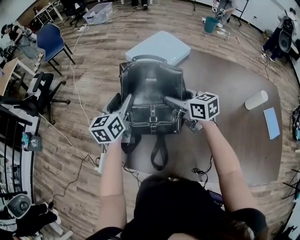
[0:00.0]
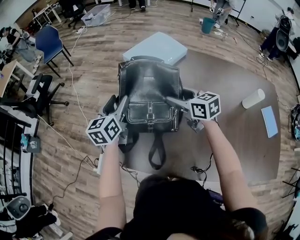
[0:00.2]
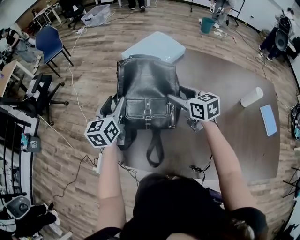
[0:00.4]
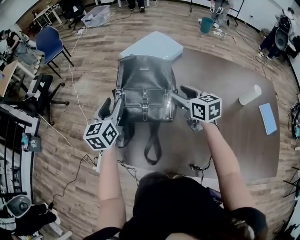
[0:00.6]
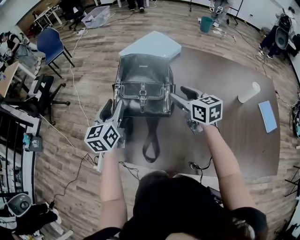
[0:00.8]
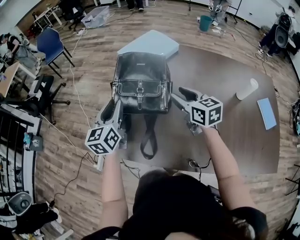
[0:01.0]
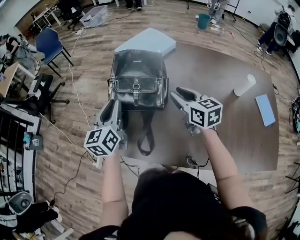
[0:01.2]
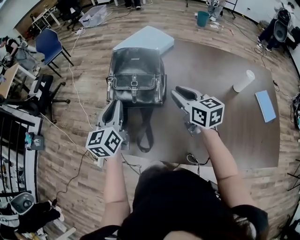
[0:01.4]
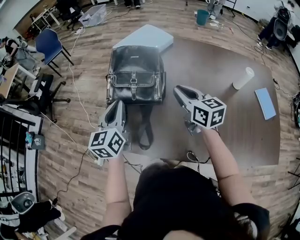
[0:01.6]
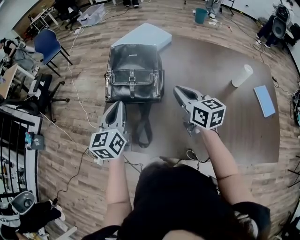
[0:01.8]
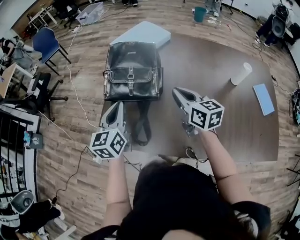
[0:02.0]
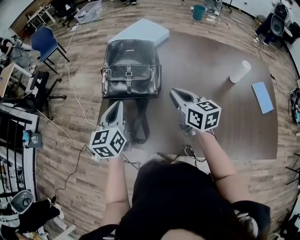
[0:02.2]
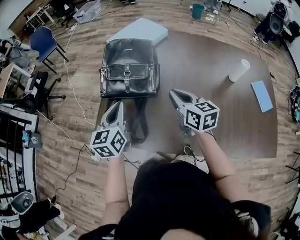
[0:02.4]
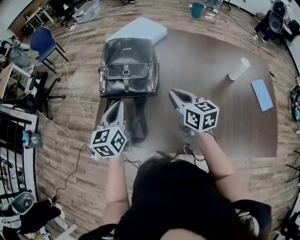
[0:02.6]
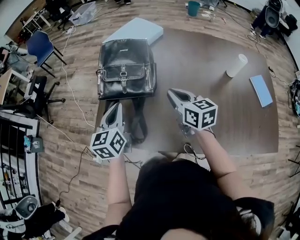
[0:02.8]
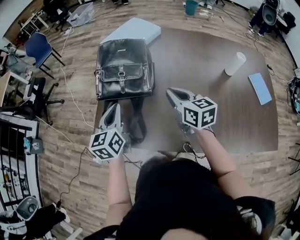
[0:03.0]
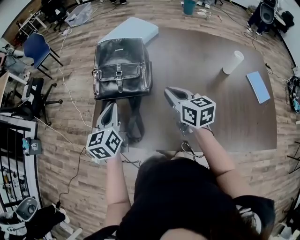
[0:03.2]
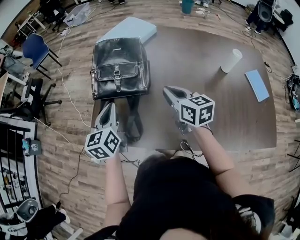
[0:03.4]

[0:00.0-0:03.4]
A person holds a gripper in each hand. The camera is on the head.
0:00.0 to 0:01.6: The left gripper heads backward, covering roughly 15 cm, and closes up. Meanwhile the right gripper is displaced backward, to the right and upward by some 15 cm, and closes up.
0:01.6 to 0:03.4: The left gripper shifts by roughly 5 cm. Meanwhile the right gripper changes place by some 5 cm.

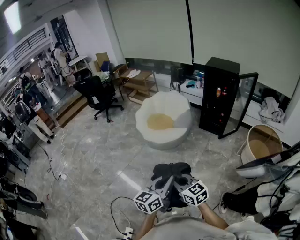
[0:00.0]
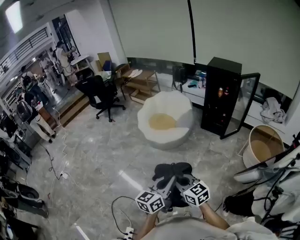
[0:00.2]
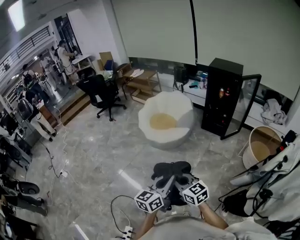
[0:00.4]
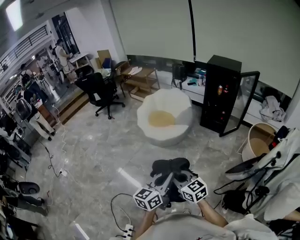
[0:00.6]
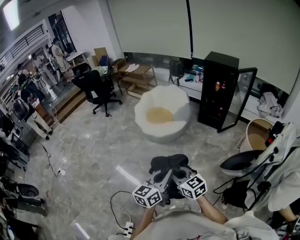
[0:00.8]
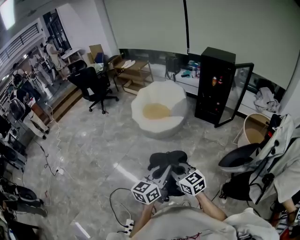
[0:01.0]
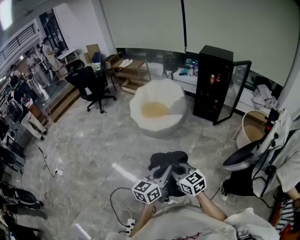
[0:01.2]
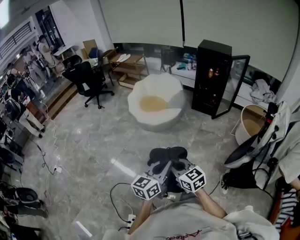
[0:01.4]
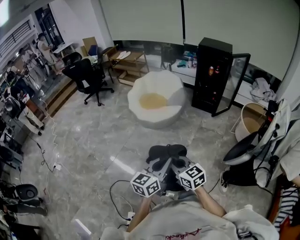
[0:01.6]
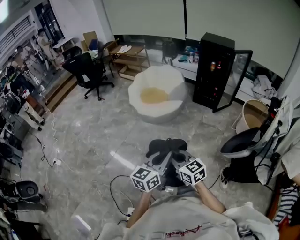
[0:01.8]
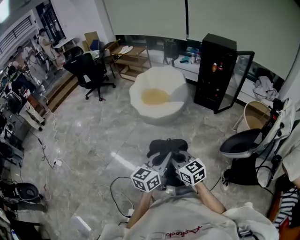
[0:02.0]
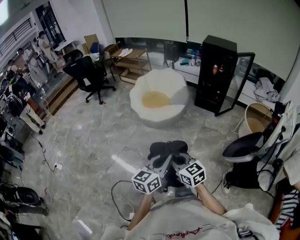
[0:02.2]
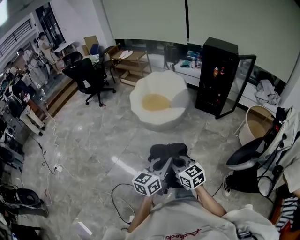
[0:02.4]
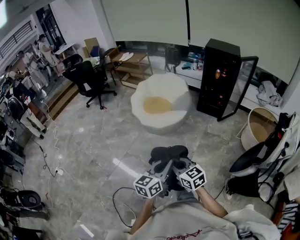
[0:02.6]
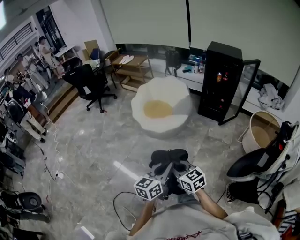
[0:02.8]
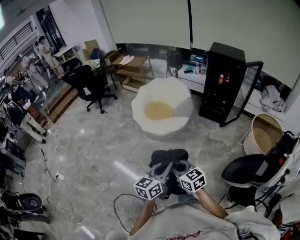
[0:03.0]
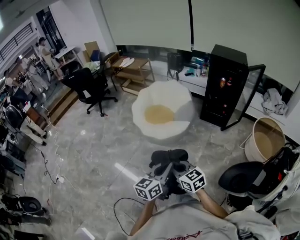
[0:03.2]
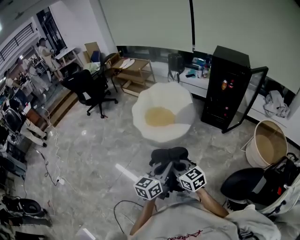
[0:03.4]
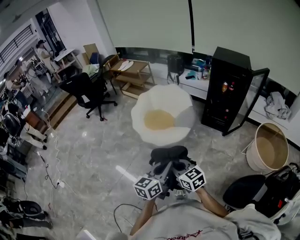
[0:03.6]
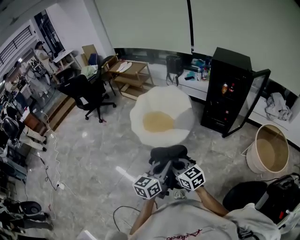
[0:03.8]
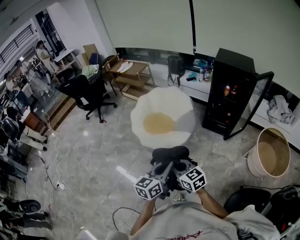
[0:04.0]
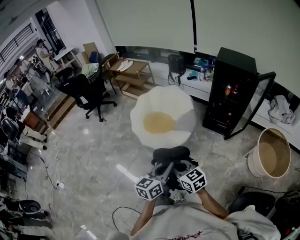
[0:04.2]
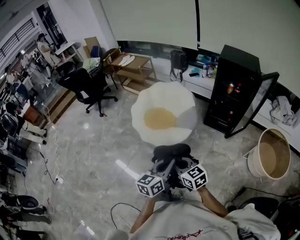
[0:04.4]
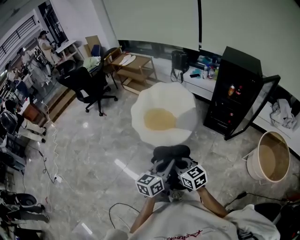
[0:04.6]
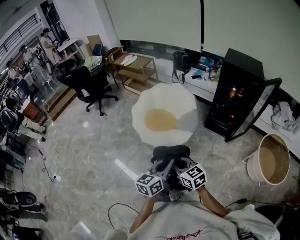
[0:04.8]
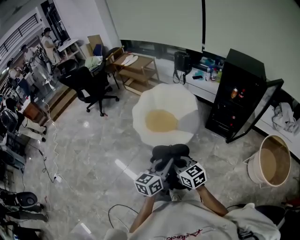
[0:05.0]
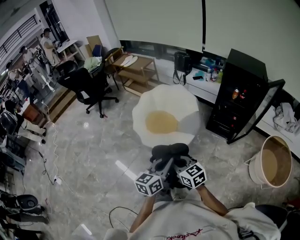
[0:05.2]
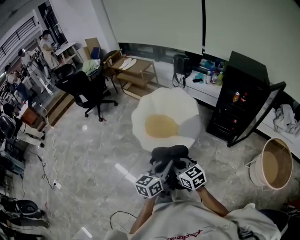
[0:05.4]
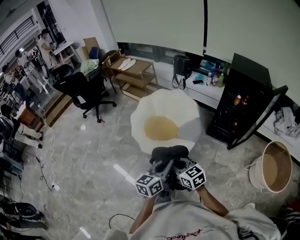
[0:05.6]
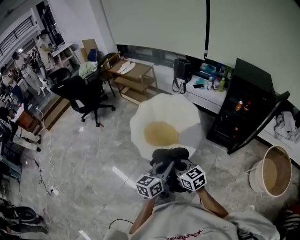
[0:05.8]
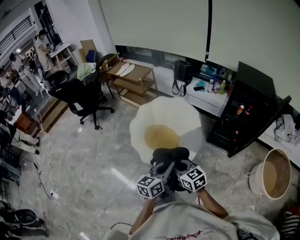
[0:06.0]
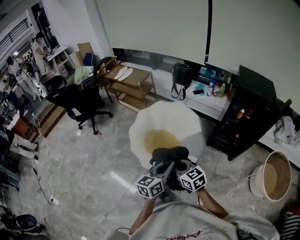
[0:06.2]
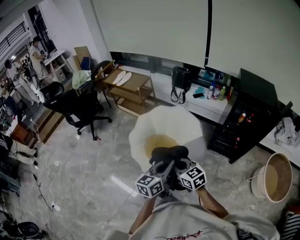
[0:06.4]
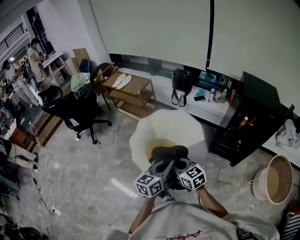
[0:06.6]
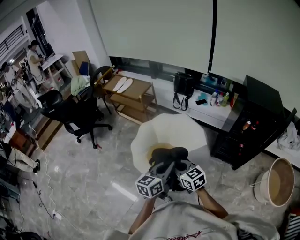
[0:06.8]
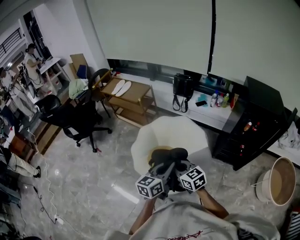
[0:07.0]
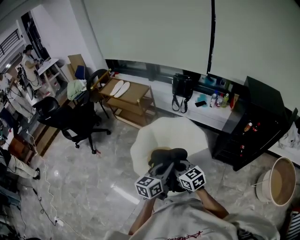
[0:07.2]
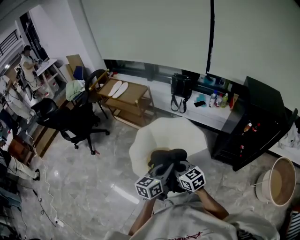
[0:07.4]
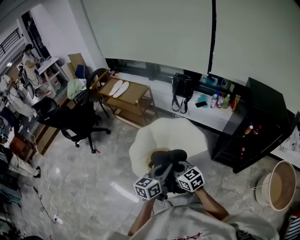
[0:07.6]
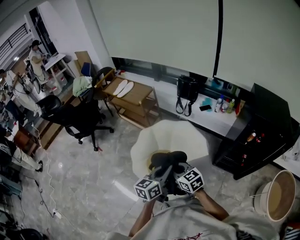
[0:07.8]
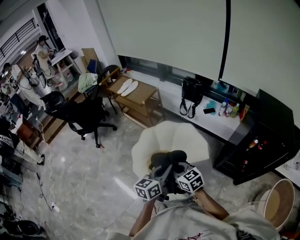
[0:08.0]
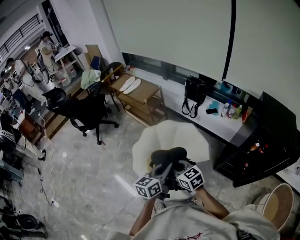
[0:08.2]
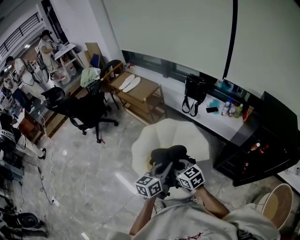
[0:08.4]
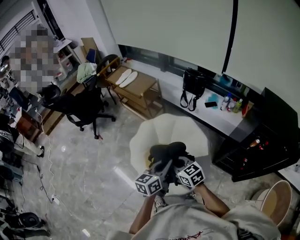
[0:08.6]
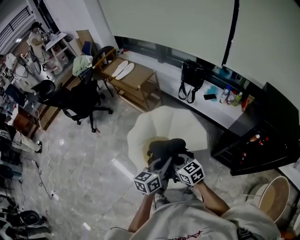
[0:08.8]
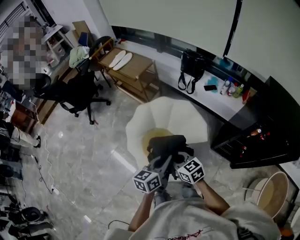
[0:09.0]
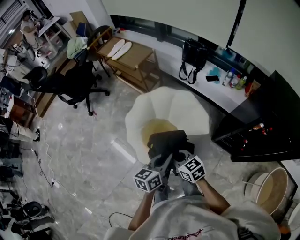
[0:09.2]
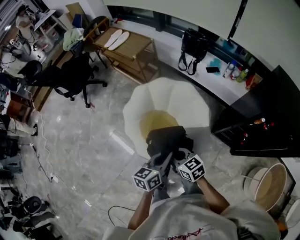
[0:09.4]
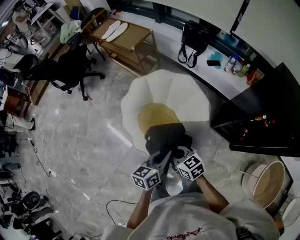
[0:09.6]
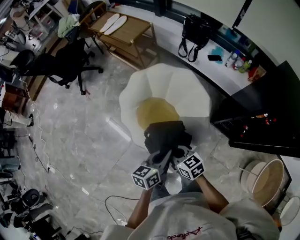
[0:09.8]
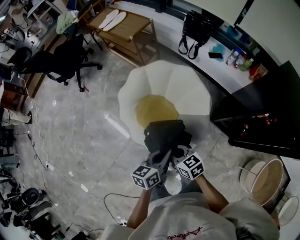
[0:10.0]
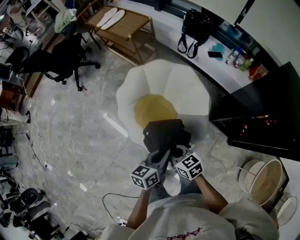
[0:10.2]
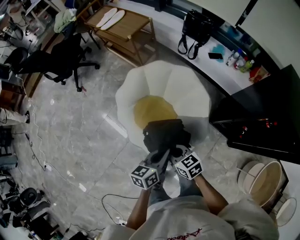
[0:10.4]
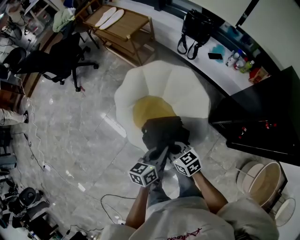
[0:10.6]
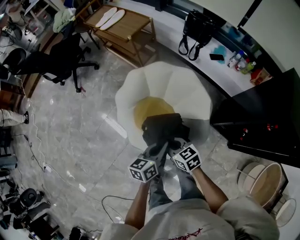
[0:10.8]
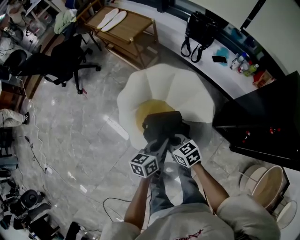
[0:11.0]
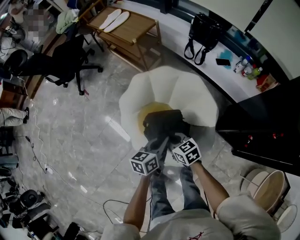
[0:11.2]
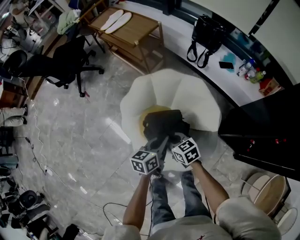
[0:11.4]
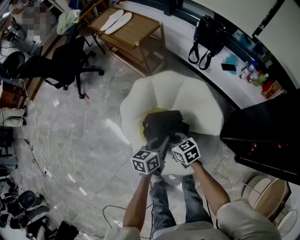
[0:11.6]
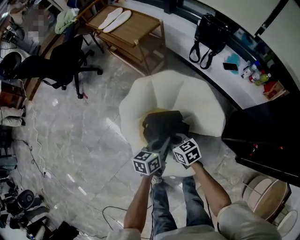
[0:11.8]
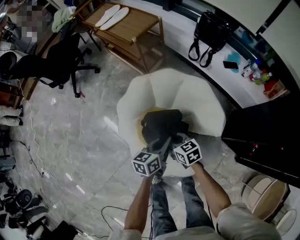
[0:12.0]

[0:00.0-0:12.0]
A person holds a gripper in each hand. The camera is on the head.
0:00.0 to 0:01.6: Both grippers move to the left, approximately 5 cm.
0:01.6 to 0:03.0: The grippers both shift forward by about 15 cm.
0:03.0 to 0:04.4: Both grippers travel together forward, approximately 20 cm.
0:04.4 to 0:06.0: Both grippers move forward, some 25 cm.
0:06.0 to 0:07.6: The grippers both shift forward by some 25 cm.
0:07.6 to 0:09.0: Both grippers move to the right and forward, approximately 10 cm.
0:09.0 to 0:10.4: The two grippers go about 10 cm downward.
0:10.4 to 0:12.0: Both grippers travel together forward and downward, approximately 25 cm.

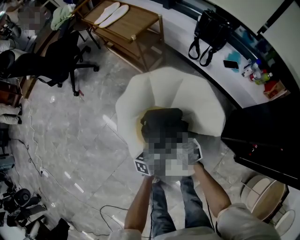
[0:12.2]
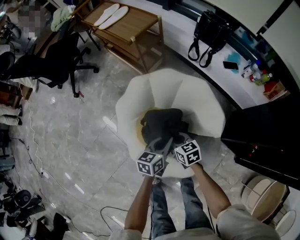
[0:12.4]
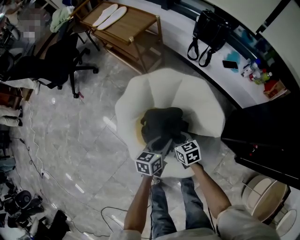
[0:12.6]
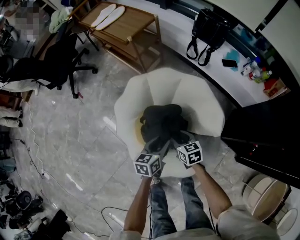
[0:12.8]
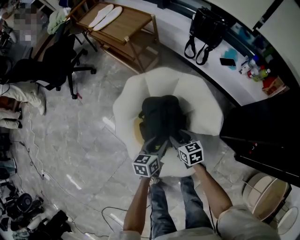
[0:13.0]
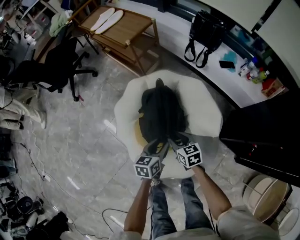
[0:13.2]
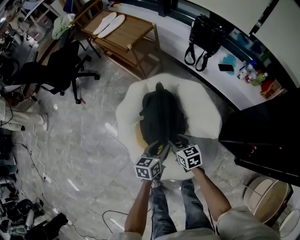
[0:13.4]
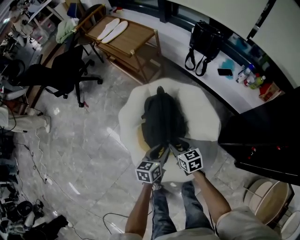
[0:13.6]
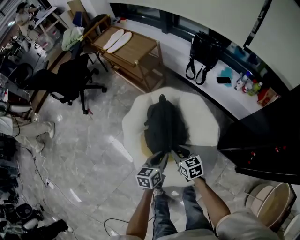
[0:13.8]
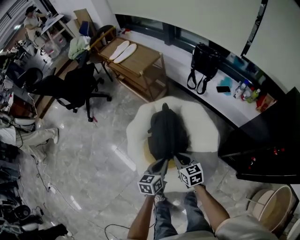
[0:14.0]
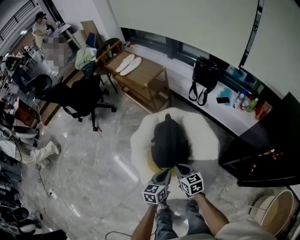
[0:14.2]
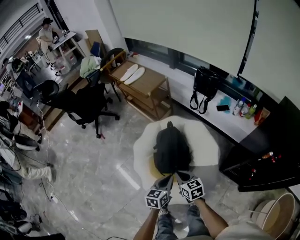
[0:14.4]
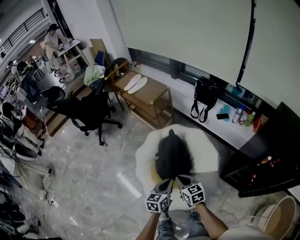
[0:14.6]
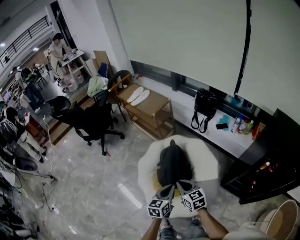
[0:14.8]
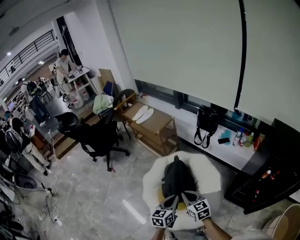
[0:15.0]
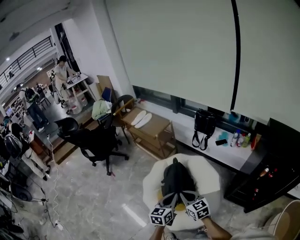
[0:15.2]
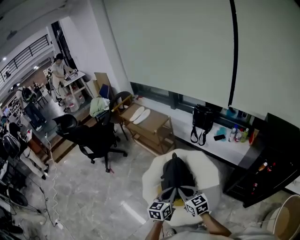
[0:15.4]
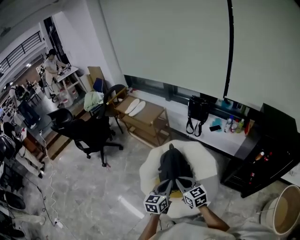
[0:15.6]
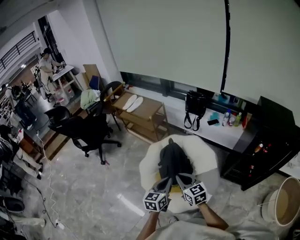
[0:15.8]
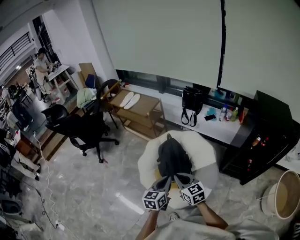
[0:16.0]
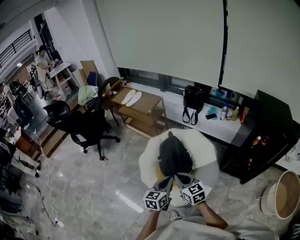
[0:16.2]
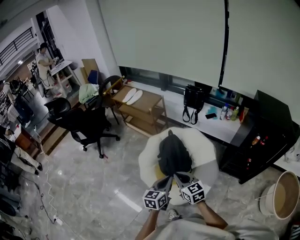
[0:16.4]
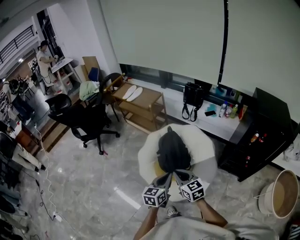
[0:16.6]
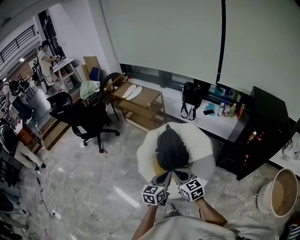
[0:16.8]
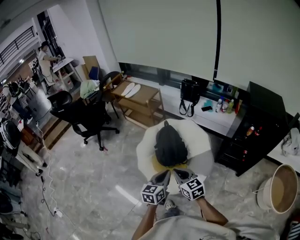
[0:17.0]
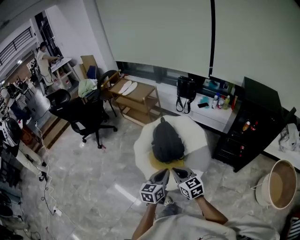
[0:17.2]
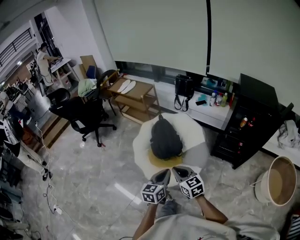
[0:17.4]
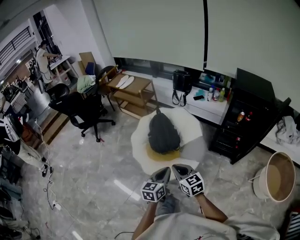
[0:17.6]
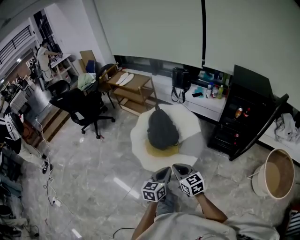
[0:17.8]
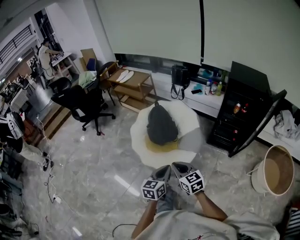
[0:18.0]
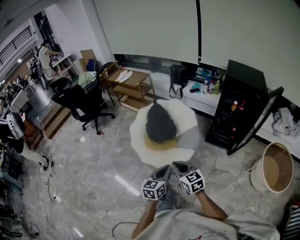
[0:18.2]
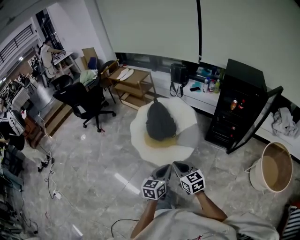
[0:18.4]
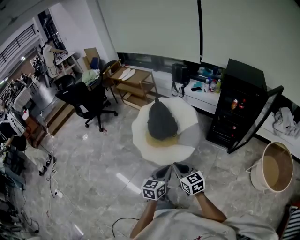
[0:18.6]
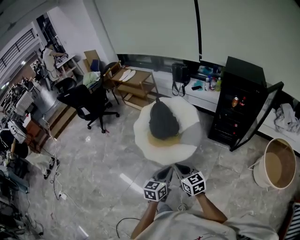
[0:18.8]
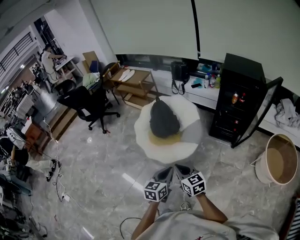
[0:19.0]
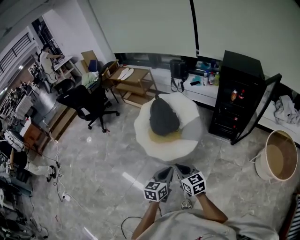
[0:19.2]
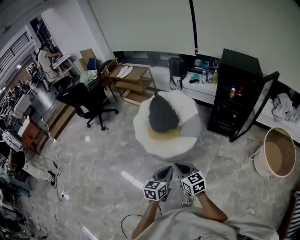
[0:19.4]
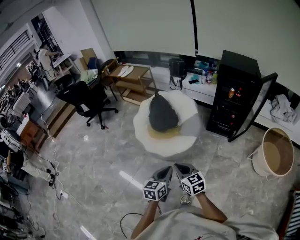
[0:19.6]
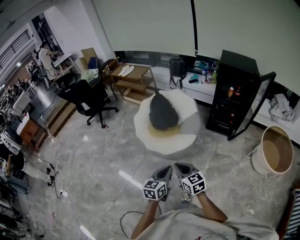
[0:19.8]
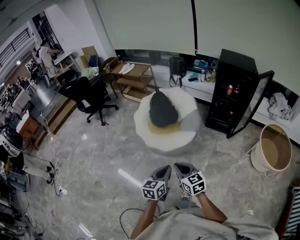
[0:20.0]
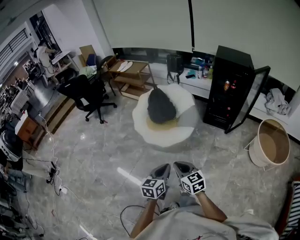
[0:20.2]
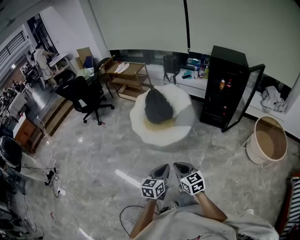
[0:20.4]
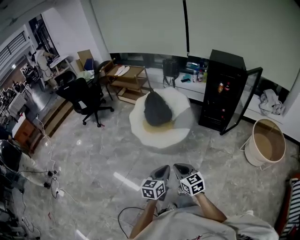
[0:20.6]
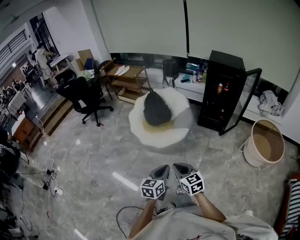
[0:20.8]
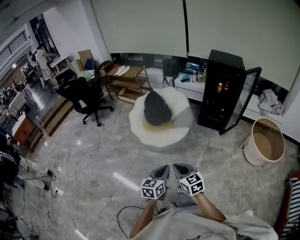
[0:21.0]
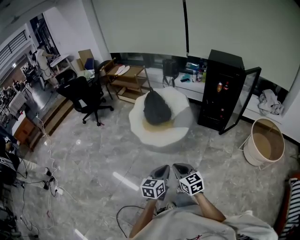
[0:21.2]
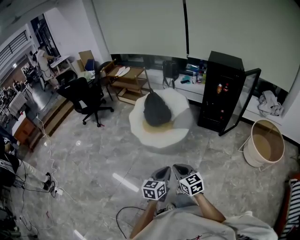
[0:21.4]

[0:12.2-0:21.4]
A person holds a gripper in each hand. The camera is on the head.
0:12.2 to 0:13.8: The left gripper goes about 5 cm backward, and opens and closes again; the right gripper moves upward, approximately 5 cm, and opens up.
0:13.8 to 0:15.2: Both grippers travel together upward and backward, approximately 25 cm. The right gripper rotates about 20 degrees, and closes, while the left gripper changes its angle by approximately 20 degrees.
0:15.2 to 0:16.8: The grippers both shift backward and to the left by approximately 15 cm.
0:16.8 to 0:18.4: The grippers both shift backward by about 30 cm.
0:18.4 to 0:19.8: Both grippers travel together backward, about 15 cm.
0:19.8 to 0:21.4: Both grippers move backward, about 15 cm.
